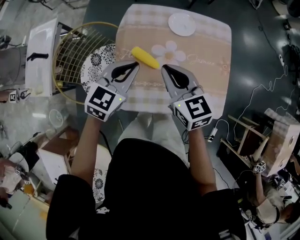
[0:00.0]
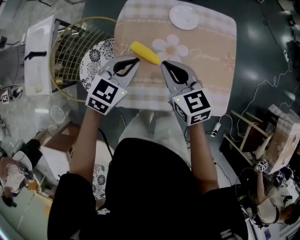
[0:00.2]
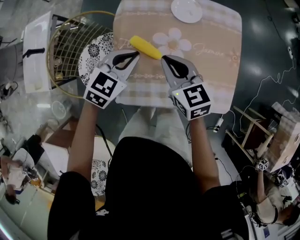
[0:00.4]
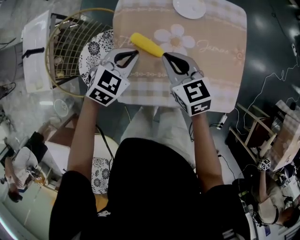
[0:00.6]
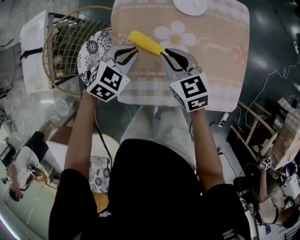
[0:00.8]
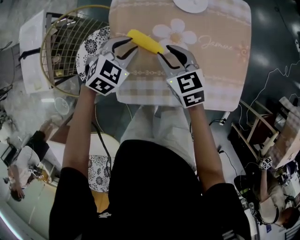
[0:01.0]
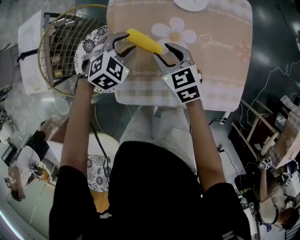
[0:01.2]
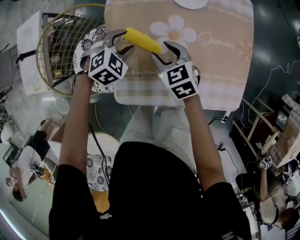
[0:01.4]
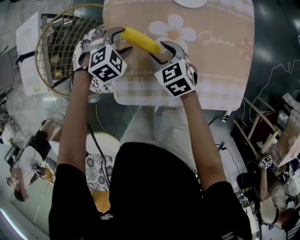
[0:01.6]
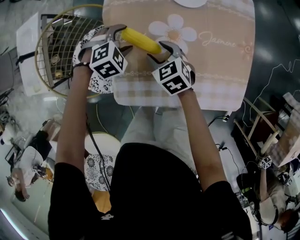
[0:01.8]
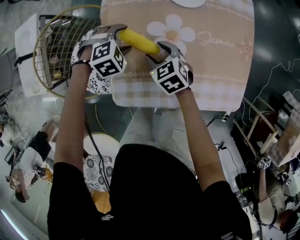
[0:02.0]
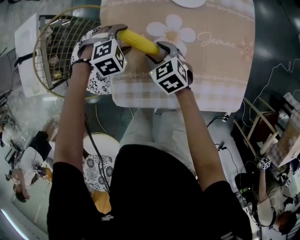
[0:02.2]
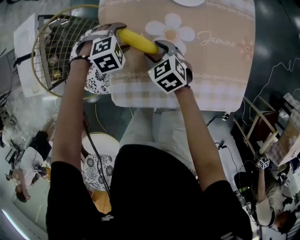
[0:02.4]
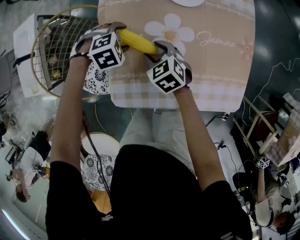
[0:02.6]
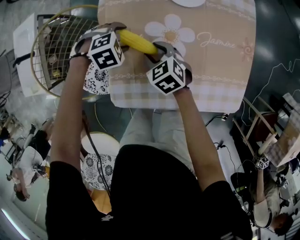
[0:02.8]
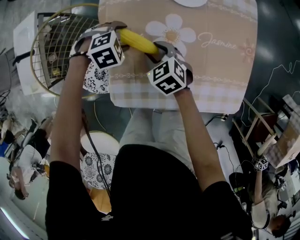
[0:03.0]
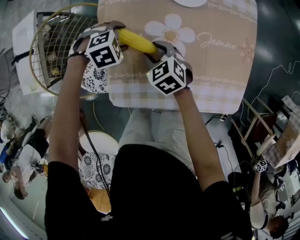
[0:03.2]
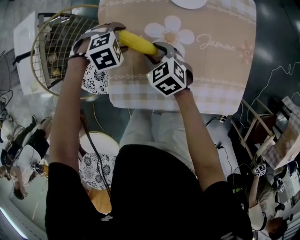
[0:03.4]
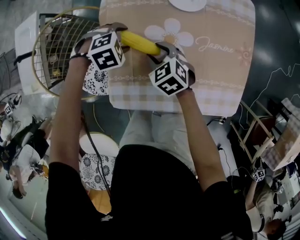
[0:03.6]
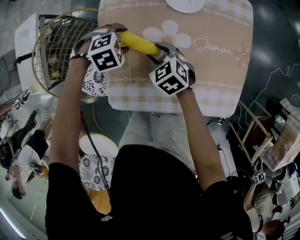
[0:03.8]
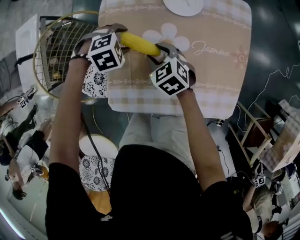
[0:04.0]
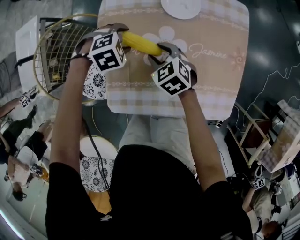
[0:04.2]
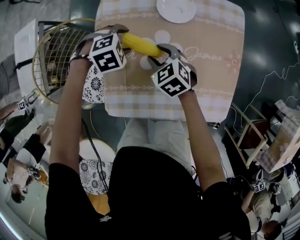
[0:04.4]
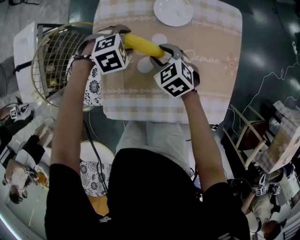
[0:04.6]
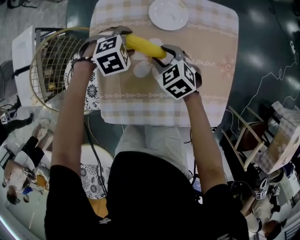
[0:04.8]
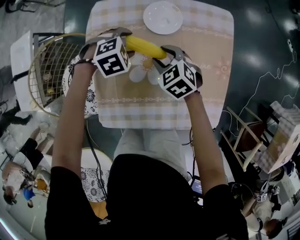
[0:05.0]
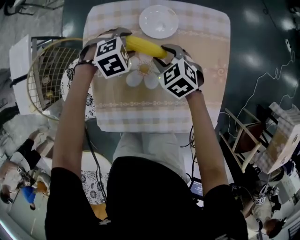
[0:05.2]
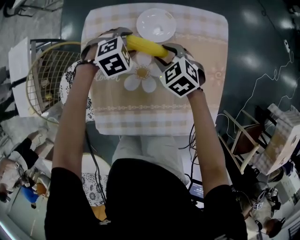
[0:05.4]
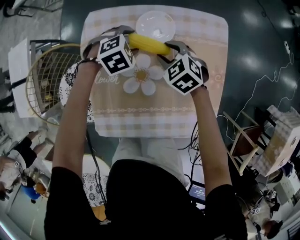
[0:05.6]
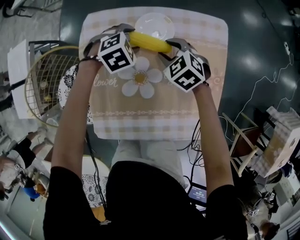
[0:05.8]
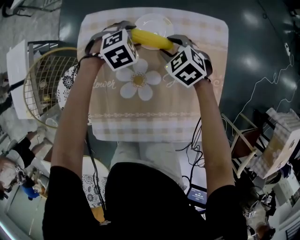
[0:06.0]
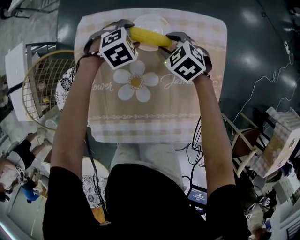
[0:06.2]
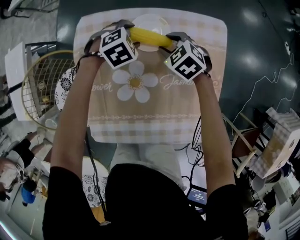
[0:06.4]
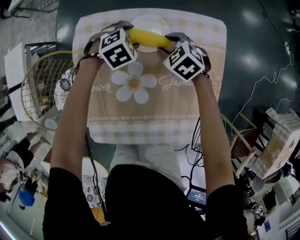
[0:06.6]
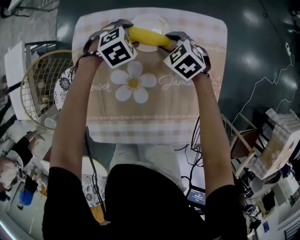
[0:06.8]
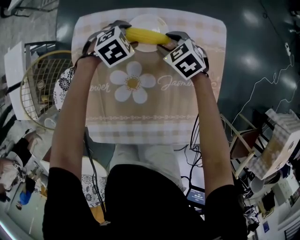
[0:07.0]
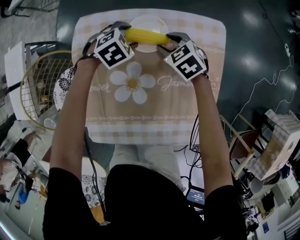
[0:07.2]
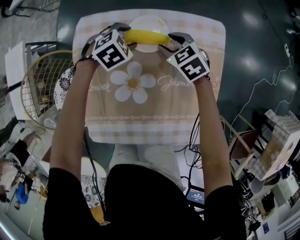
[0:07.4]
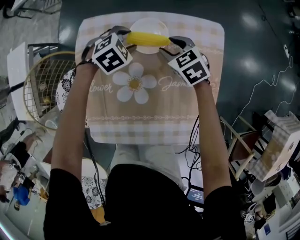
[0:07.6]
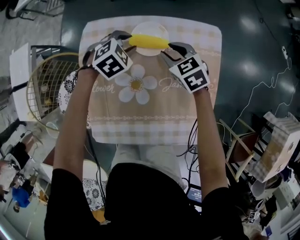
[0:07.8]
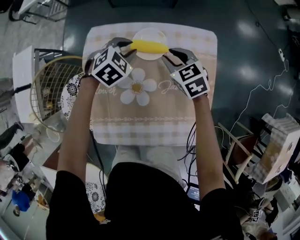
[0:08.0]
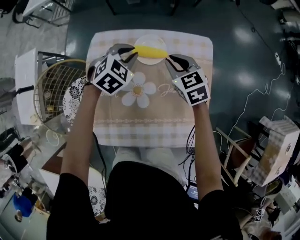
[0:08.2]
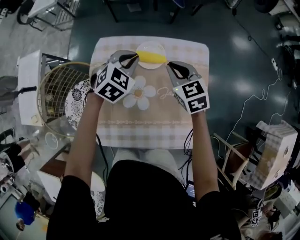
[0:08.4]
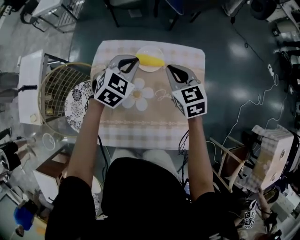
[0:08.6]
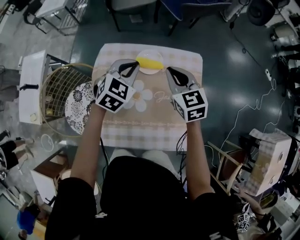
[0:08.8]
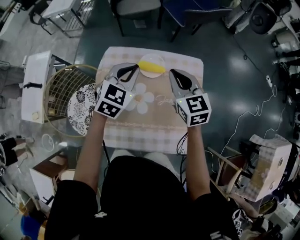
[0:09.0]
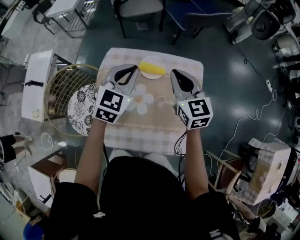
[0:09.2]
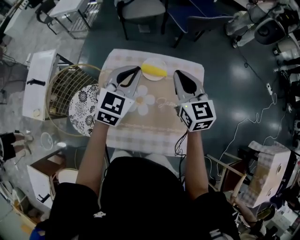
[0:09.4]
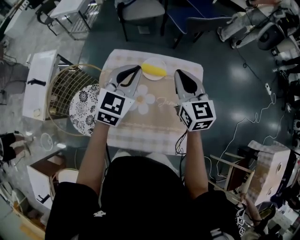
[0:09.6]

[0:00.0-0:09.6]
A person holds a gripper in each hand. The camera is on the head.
0.0 to 1.6 s: Both grippers travel together downward, roughly 25 cm. The left gripper points its fingers roughly 40 degrees further downward, and opens up; the right gripper rotates roughly 30 degrees, and opens up.
1.6 to 3.2 s: There are only small adjustments of the grippers.
3.2 to 4.8 s: The left gripper shifts by some 15 cm. Meanwhile the right gripper shifts by roughly 15 cm.
4.8 to 6.4 s: The grippers both shift forward and to the right by some 15 cm.
6.4 to 8.0 s: Both grippers travel together upward, approximately 10 cm. The right gripper changes its angle by roughly 20 degrees; the left gripper closes.
8.0 to 9.6 s: Both grippers move upward, about 30 cm. The right gripper angles its fingers upward, by about 30 degrees, and closes. The left gripper tips its fingers upward by approximately 40 degrees, and closes its fingers.

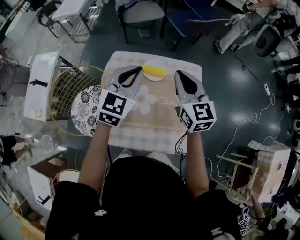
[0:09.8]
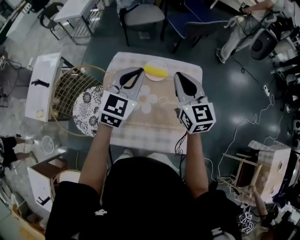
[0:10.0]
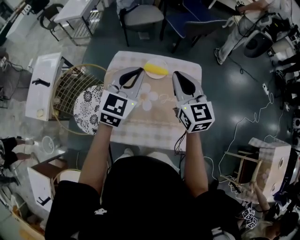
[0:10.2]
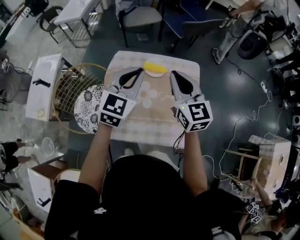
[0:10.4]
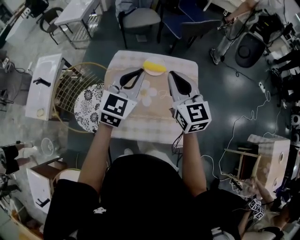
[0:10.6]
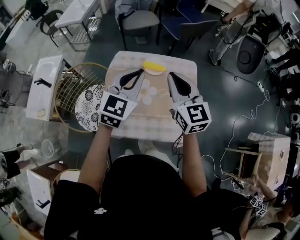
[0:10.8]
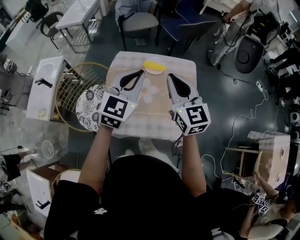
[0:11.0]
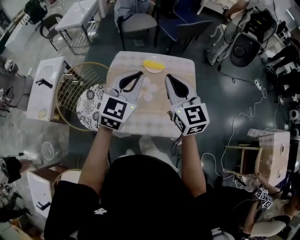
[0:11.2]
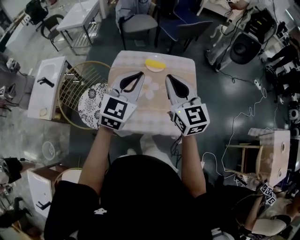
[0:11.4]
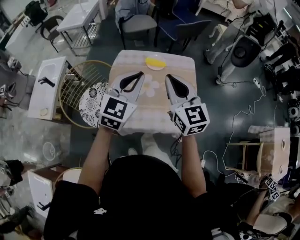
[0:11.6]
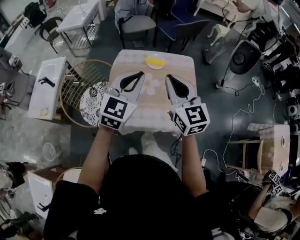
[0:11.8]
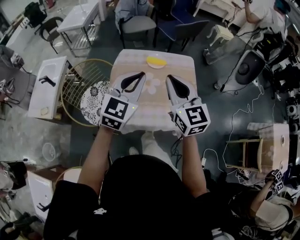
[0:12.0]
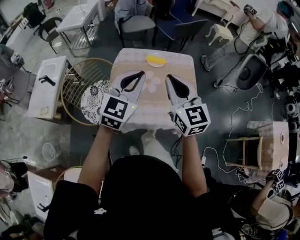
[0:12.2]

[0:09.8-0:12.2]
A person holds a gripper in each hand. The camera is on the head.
9.8 to 11.0 s: Both grippers move backward and upward, about 15 cm.
11.0 to 12.2 s: Both grippers travel together backward, some 15 cm.

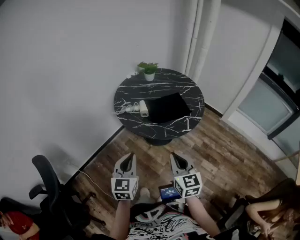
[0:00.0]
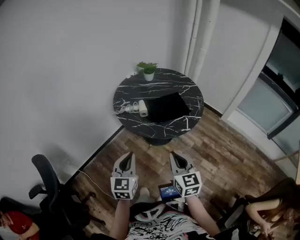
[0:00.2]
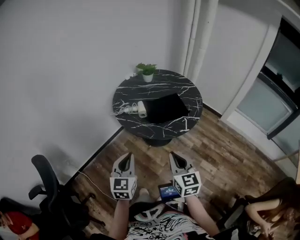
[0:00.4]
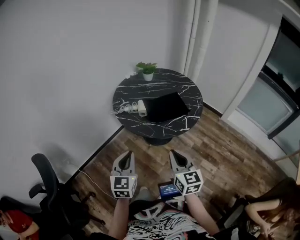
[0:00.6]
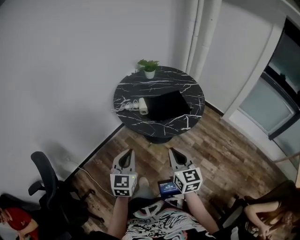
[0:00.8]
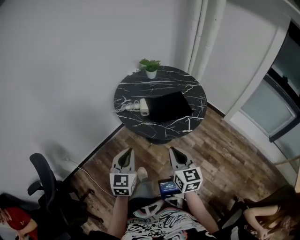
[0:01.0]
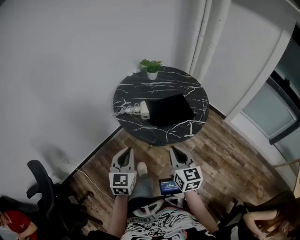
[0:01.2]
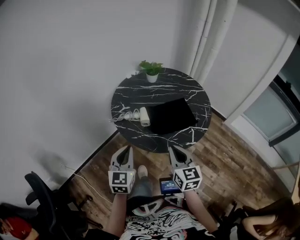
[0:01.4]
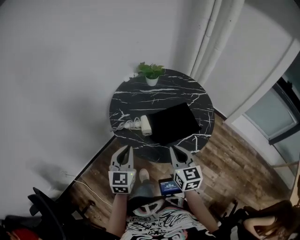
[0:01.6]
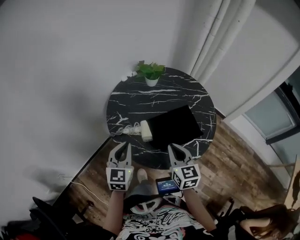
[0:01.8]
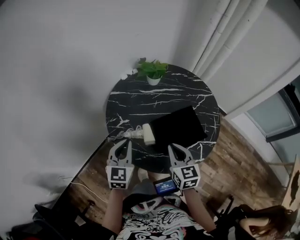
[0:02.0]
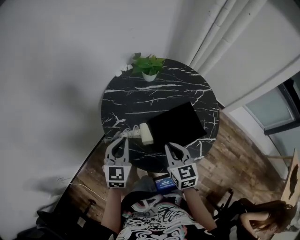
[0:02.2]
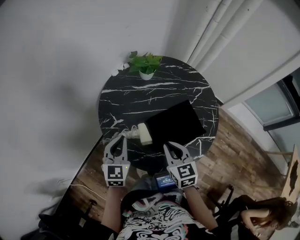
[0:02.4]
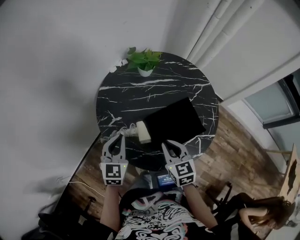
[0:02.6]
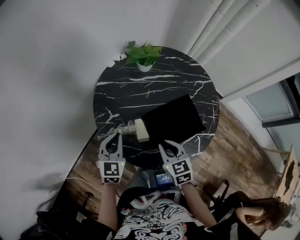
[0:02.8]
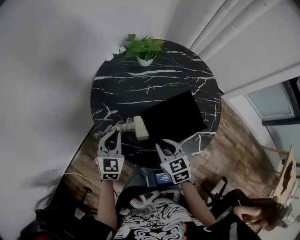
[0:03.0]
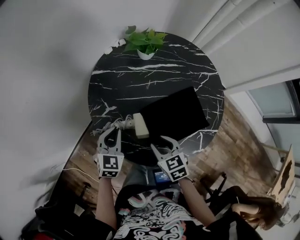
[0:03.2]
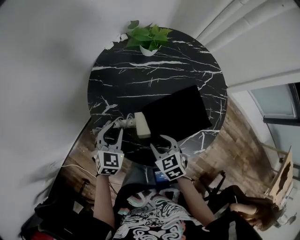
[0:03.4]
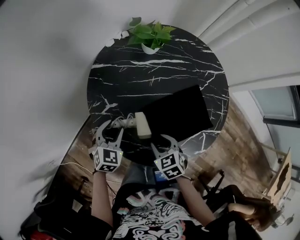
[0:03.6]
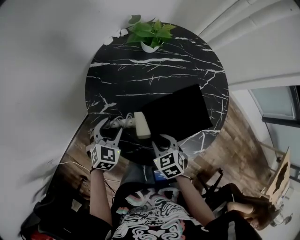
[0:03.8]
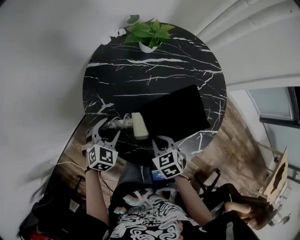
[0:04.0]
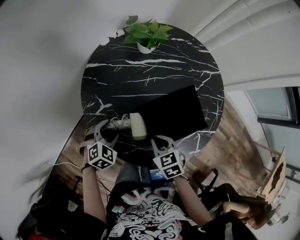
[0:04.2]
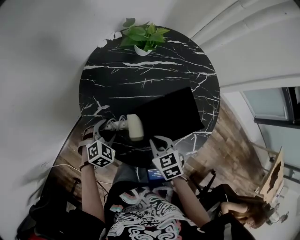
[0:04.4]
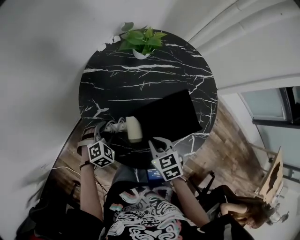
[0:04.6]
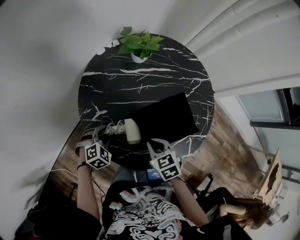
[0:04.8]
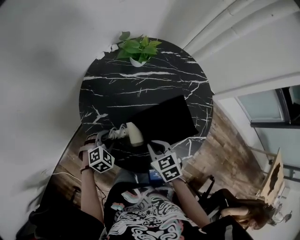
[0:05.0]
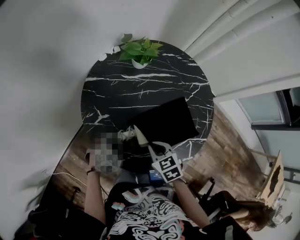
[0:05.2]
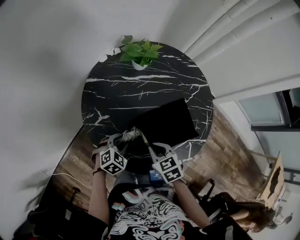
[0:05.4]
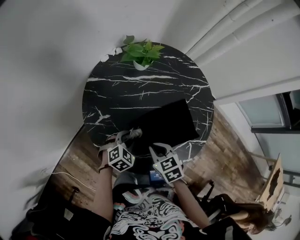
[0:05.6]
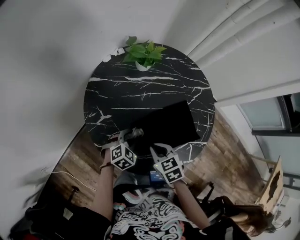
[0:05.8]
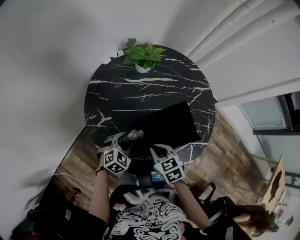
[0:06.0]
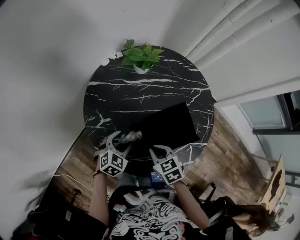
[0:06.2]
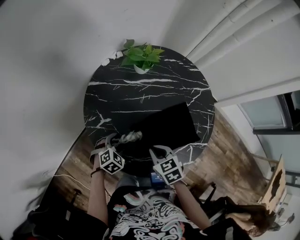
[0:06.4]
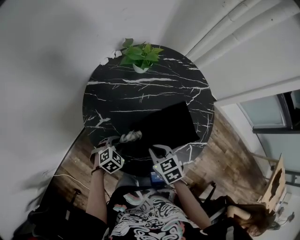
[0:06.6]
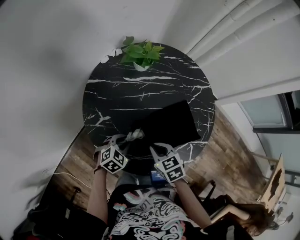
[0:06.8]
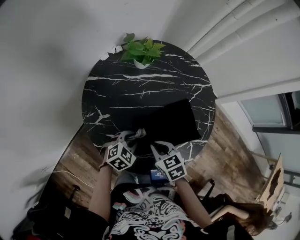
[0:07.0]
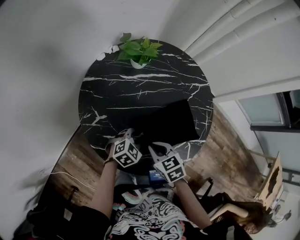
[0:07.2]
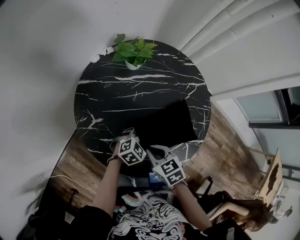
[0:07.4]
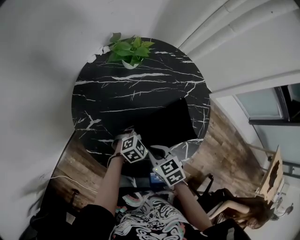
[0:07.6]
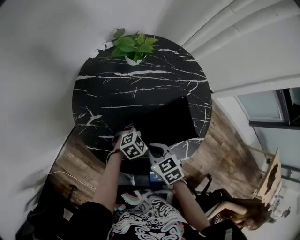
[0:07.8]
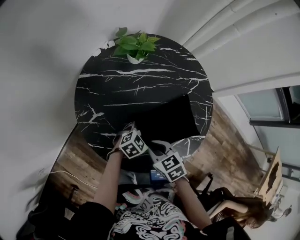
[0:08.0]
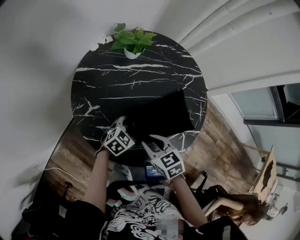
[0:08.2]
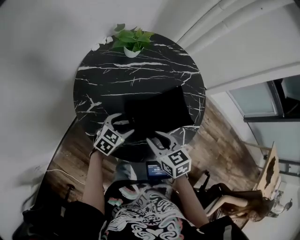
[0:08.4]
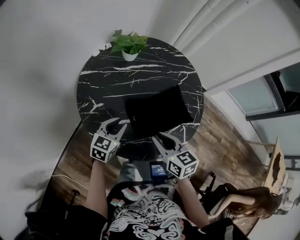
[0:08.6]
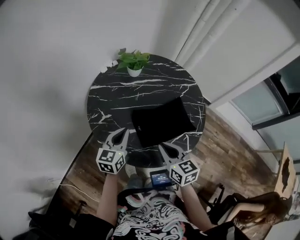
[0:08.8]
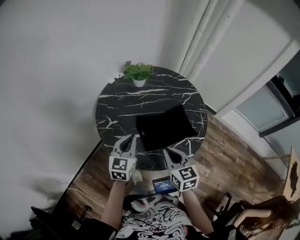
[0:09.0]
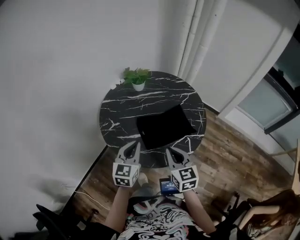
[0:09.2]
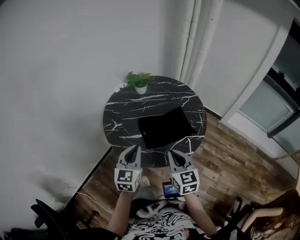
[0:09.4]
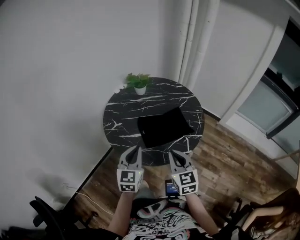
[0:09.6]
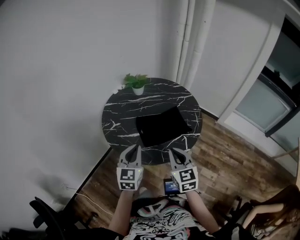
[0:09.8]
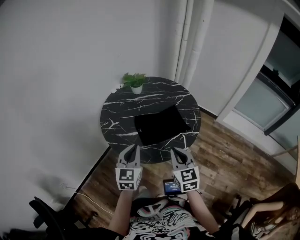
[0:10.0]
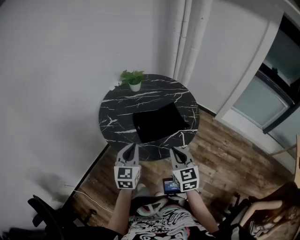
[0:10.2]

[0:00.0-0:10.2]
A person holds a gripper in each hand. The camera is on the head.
0.0 to 1.4 s: The grippers both shift forward by roughly 15 cm.
1.4 to 3.0 s: Both grippers move forward and downward, some 30 cm. The right gripper swivels about 30 degrees.
3.0 to 4.4 s: The left gripper travels downward by some 10 cm, changes its angle by approximately 40 degrees, and opens up. The right gripper opens, then closes again.
4.4 to 5.8 s: The left gripper goes roughly 10 cm to the right.
5.8 to 7.2 s: The left gripper goes some 5 cm to the right.
7.2 to 8.8 s: The left gripper moves upward and to the left, roughly 15 cm, rotates some 50 degrees, and opens, then closes once more. The right gripper moves upward and backward, approximately 10 cm, and changes its angle by roughly 30 degrees.
8.8 to 10.2 s: The right gripper goes some 15 cm backward, to the right and upward, and rotates some 20 degrees. The left gripper is displaced backward and upward by roughly 20 cm, and swivels approximately 20 degrees.

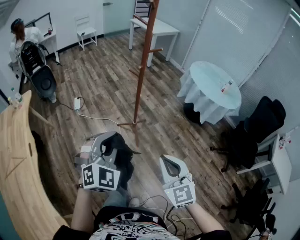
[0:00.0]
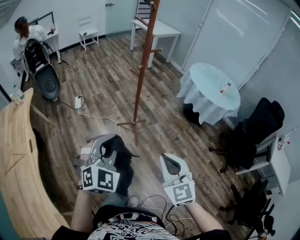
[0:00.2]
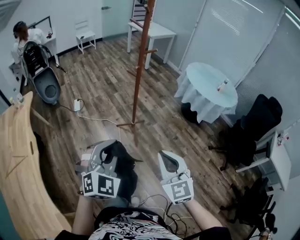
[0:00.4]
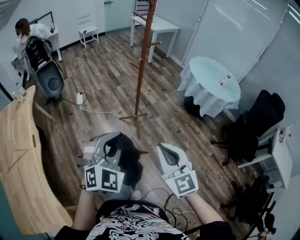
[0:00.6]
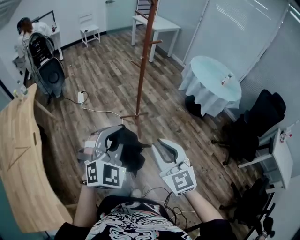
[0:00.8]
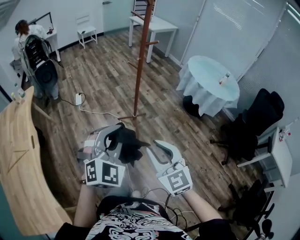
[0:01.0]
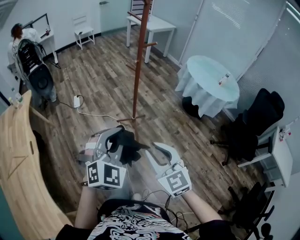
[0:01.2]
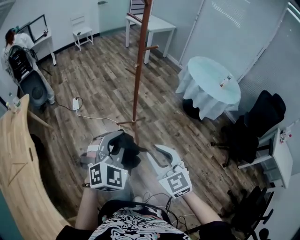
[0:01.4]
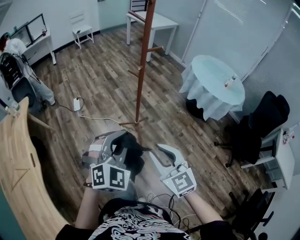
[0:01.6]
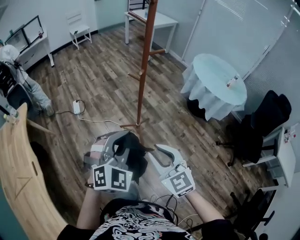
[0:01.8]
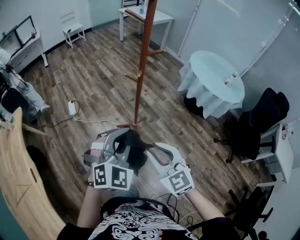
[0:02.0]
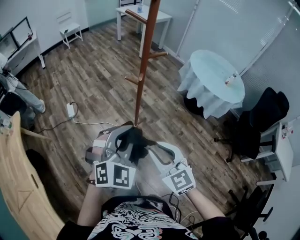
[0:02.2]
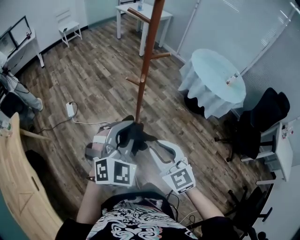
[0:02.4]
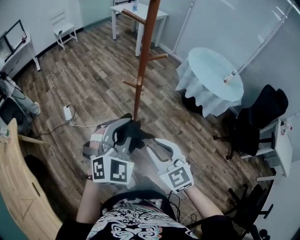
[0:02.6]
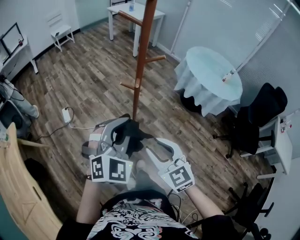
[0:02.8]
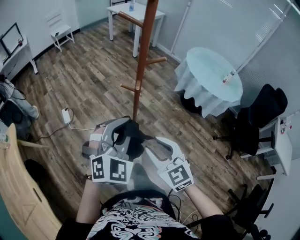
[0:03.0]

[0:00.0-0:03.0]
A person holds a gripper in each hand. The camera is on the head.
0.0 to 1.6 s: The right gripper moves forward and to the left, roughly 10 cm, and opens its fingers. The left gripper is displaced forward by approximately 5 cm.
1.6 to 3.0 s: Both grippers travel together forward, approximately 20 cm.
